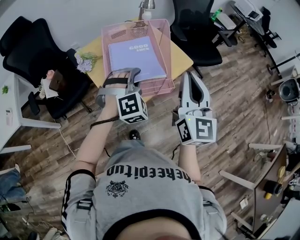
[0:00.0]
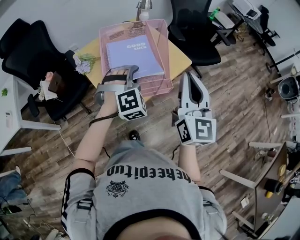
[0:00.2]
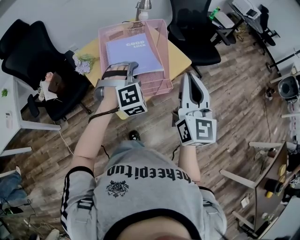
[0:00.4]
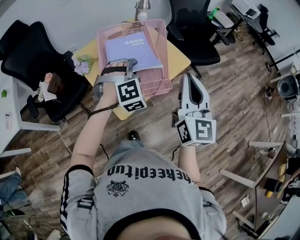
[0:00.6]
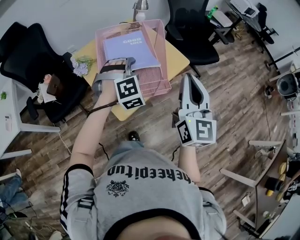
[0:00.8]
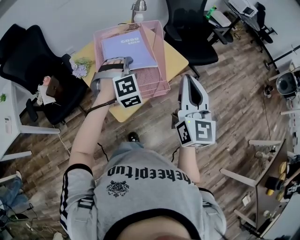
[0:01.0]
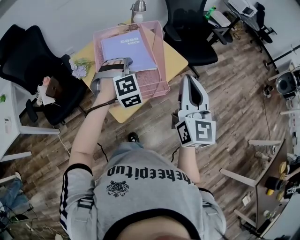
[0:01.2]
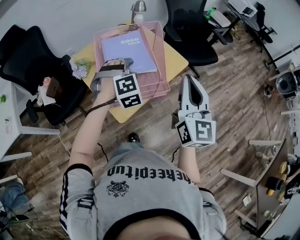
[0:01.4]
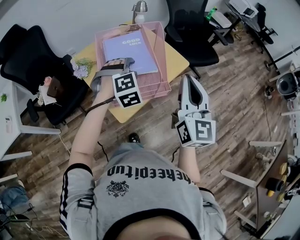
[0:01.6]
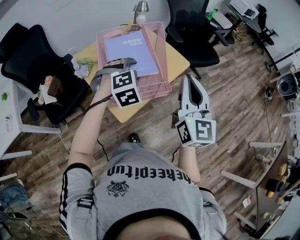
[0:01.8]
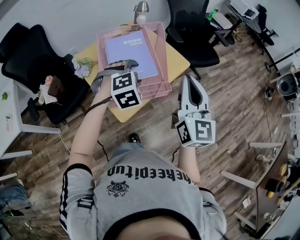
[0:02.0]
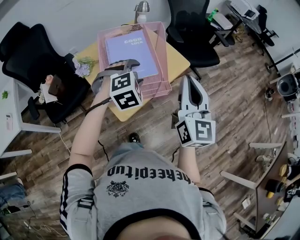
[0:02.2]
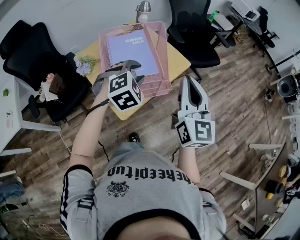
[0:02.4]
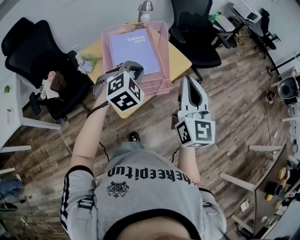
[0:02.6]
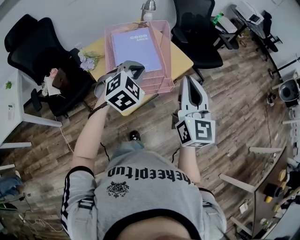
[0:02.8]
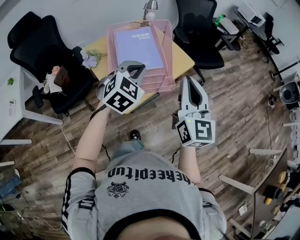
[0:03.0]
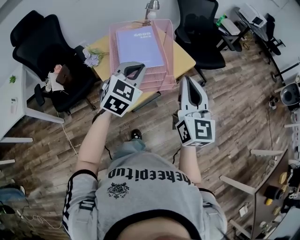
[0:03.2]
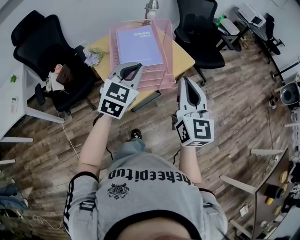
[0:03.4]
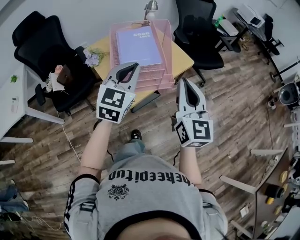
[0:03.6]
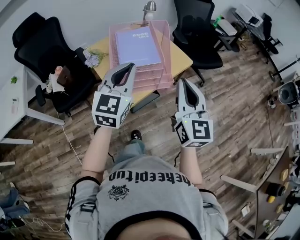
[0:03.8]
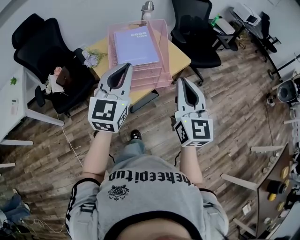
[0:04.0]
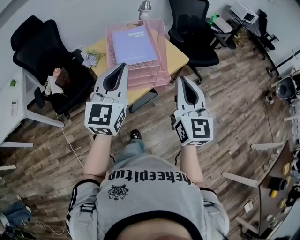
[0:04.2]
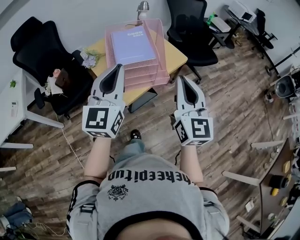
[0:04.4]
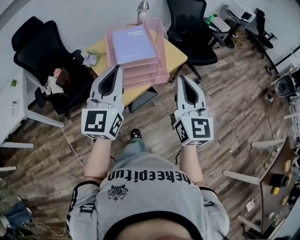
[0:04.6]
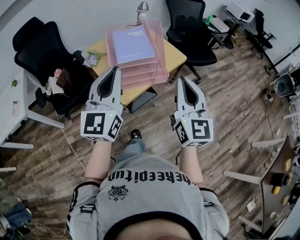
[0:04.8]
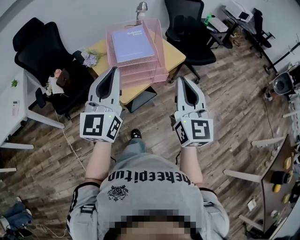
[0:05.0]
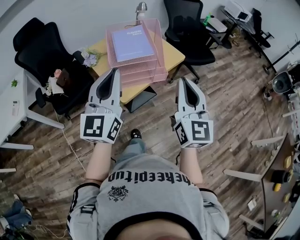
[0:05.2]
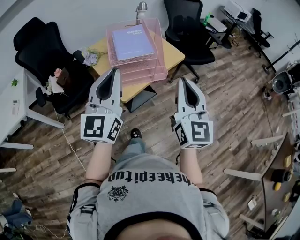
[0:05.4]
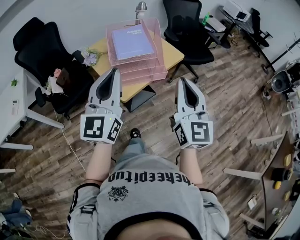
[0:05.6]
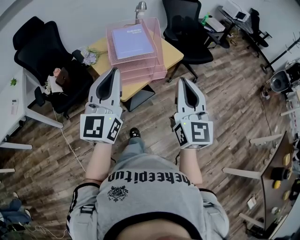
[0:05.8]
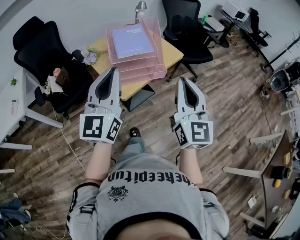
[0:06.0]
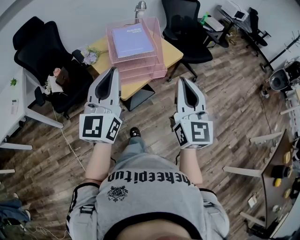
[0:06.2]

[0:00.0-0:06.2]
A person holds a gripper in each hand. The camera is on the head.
0:00.0 to 0:01.6: The left gripper opens up.
0:01.6 to 0:03.2: The left gripper travels backward and upward by roughly 10 cm, changes its angle by some 50 degrees, and closes up. Meanwhile the right gripper moves backward, approximately 5 cm.
0:03.2 to 0:04.6: The left gripper heads backward and upward, covering some 15 cm, and tips its fingers upward by about 30 degrees; the right gripper moves backward, about 10 cm.
0:04.6 to 0:06.2: Both grippers move backward, approximately 10 cm.

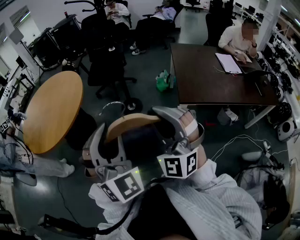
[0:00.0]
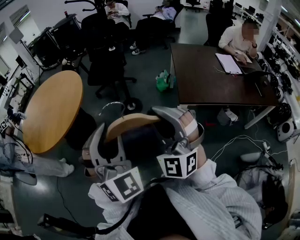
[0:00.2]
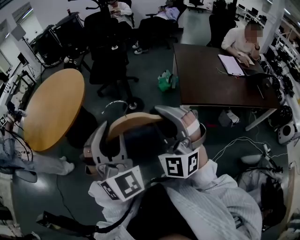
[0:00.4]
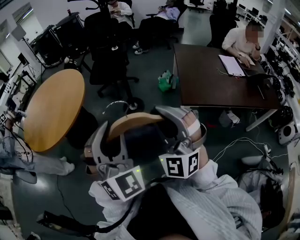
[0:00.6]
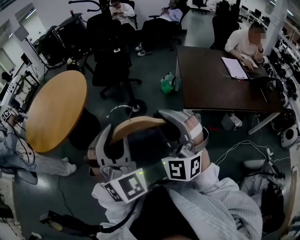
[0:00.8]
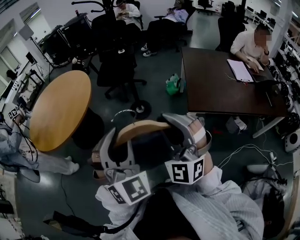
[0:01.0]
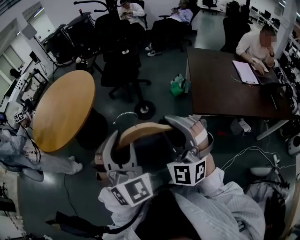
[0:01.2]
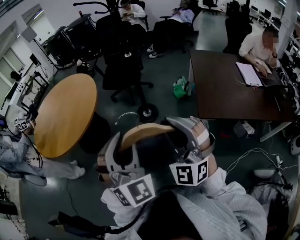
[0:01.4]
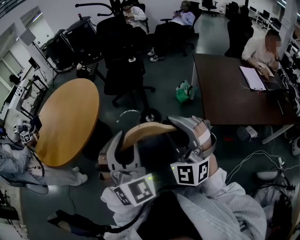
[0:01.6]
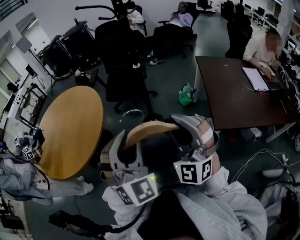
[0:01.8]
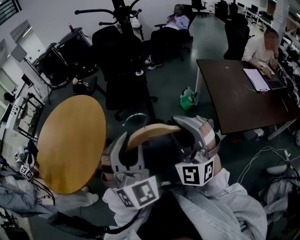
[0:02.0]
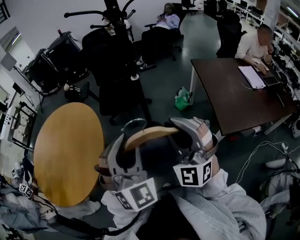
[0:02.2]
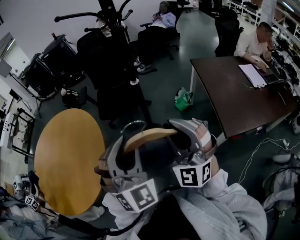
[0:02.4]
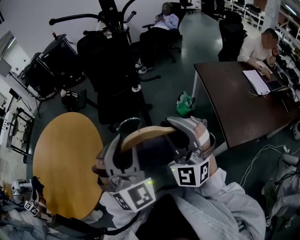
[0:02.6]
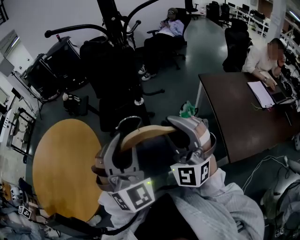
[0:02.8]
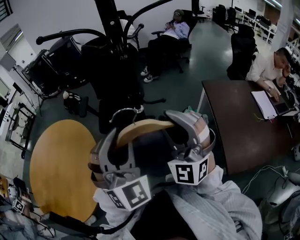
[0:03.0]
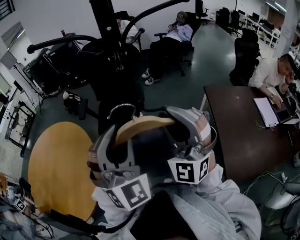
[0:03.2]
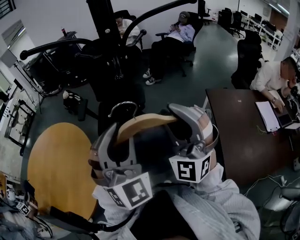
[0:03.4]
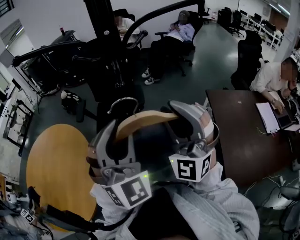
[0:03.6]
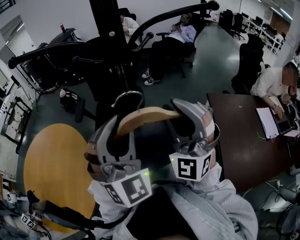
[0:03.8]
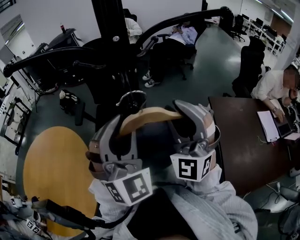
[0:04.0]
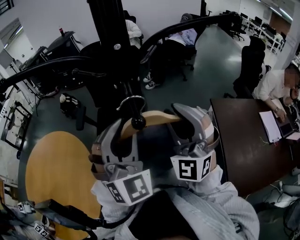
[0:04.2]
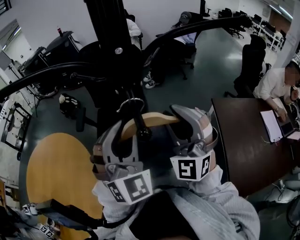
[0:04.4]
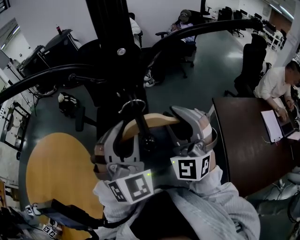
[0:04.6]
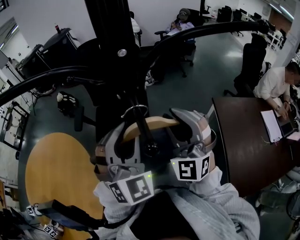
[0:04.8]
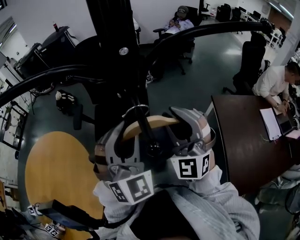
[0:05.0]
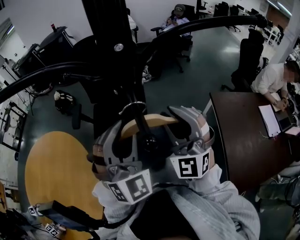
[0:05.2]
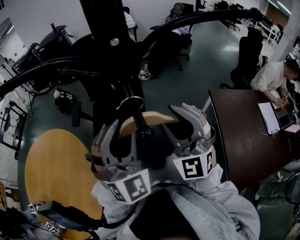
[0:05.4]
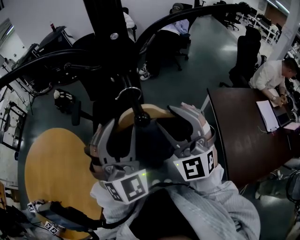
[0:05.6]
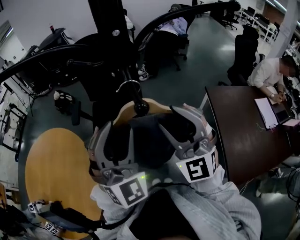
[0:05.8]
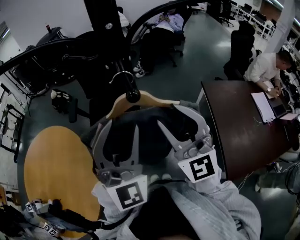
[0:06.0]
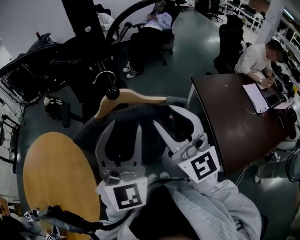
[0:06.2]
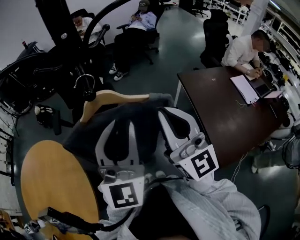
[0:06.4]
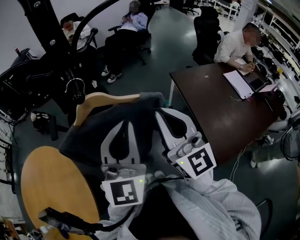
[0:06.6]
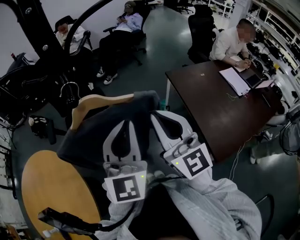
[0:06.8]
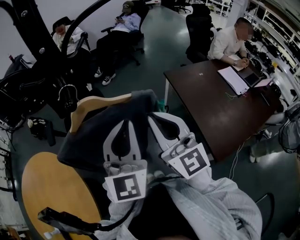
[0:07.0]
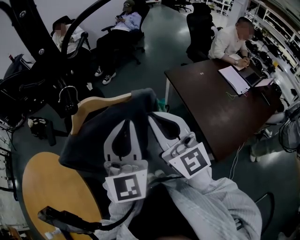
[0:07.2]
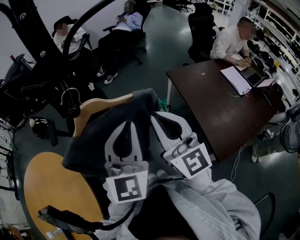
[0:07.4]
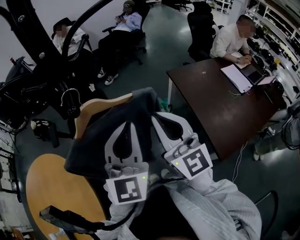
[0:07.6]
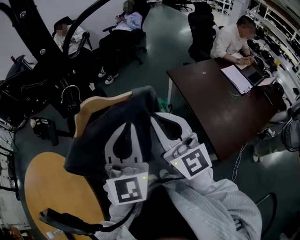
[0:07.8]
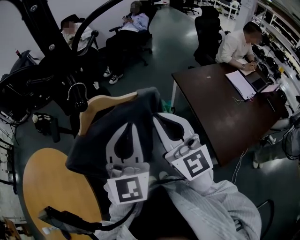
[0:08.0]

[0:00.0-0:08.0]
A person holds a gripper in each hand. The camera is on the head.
0:00.0 to 0:01.6: The grippers both shift forward by approximately 15 cm.
0:01.6 to 0:03.2: Both grippers are carried forward, approximately 50 cm.
0:03.2 to 0:04.8: Both grippers travel together forward, roughly 20 cm.
0:04.8 to 0:06.4: The left gripper goes roughly 15 cm backward and to the right, and swivels about 40 degrees. Meanwhile the right gripper moves backward, about 15 cm, rotates around the line of its fingers by roughly 50 degrees, clockwise from behind, and closes.
0:06.4 to 0:08.0: The left gripper moves some 5 cm, and closes.

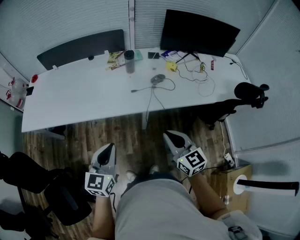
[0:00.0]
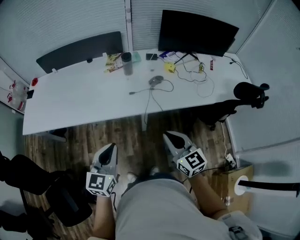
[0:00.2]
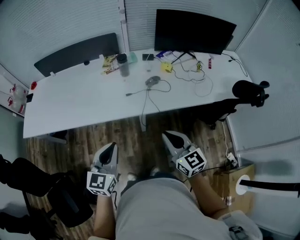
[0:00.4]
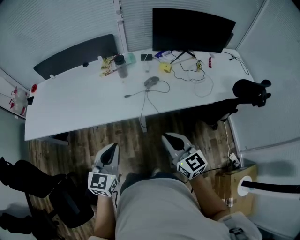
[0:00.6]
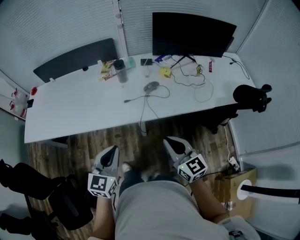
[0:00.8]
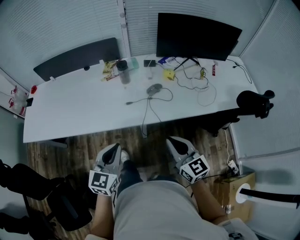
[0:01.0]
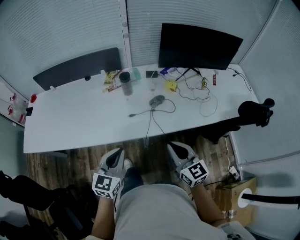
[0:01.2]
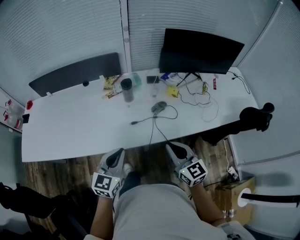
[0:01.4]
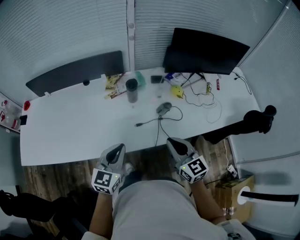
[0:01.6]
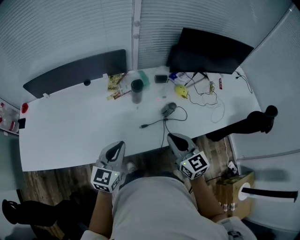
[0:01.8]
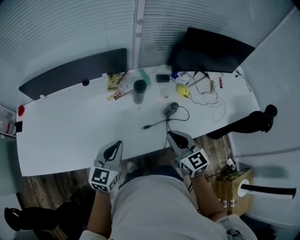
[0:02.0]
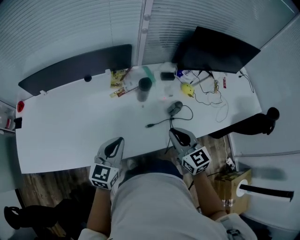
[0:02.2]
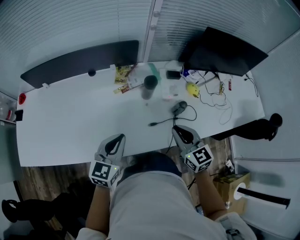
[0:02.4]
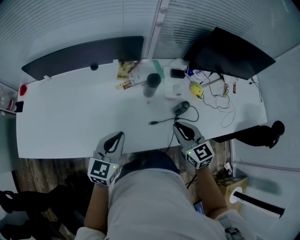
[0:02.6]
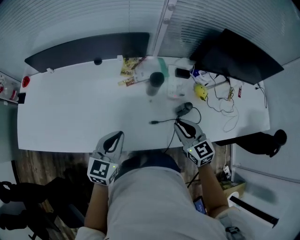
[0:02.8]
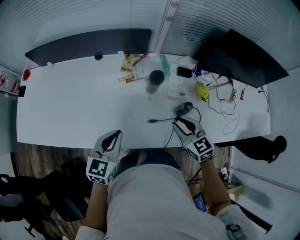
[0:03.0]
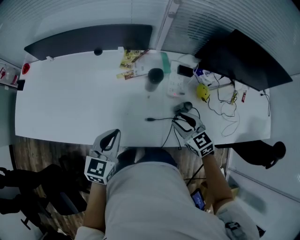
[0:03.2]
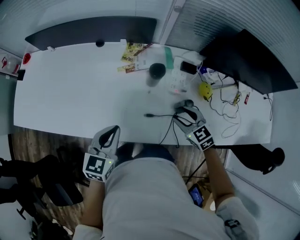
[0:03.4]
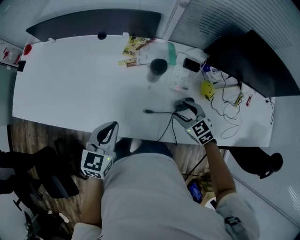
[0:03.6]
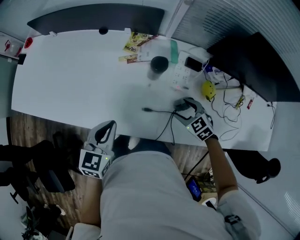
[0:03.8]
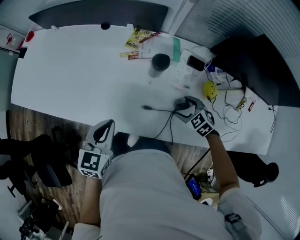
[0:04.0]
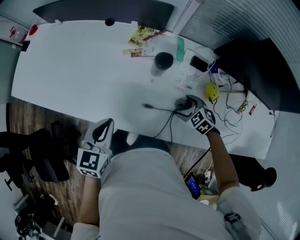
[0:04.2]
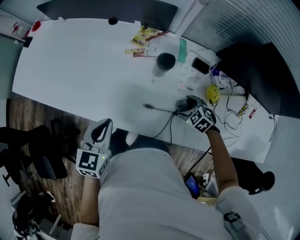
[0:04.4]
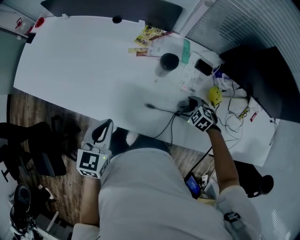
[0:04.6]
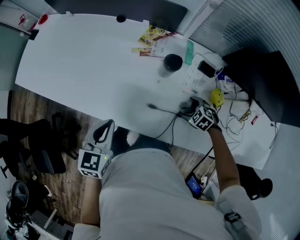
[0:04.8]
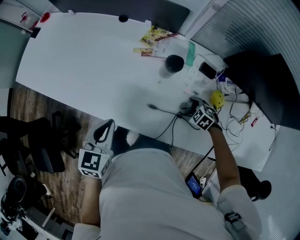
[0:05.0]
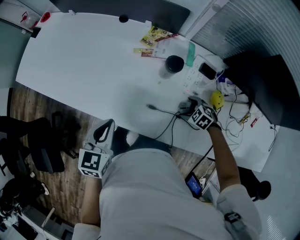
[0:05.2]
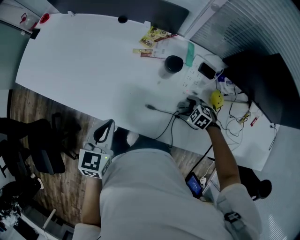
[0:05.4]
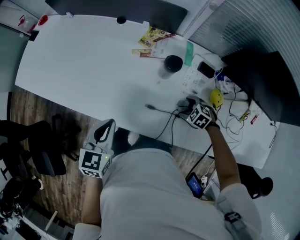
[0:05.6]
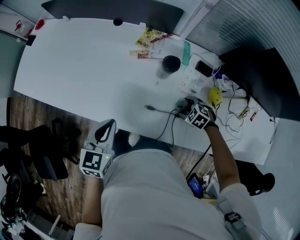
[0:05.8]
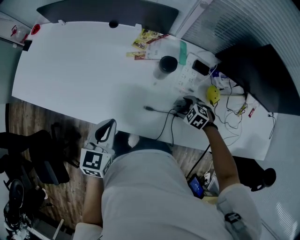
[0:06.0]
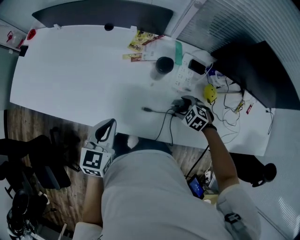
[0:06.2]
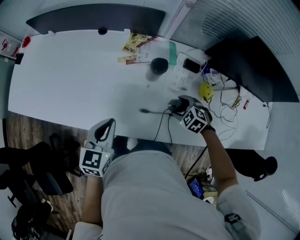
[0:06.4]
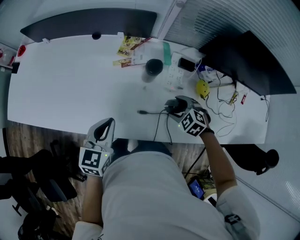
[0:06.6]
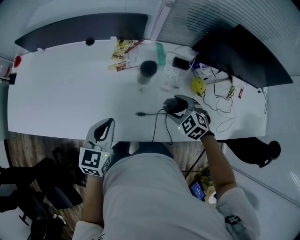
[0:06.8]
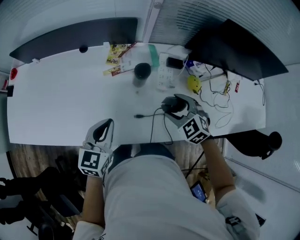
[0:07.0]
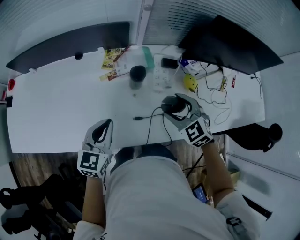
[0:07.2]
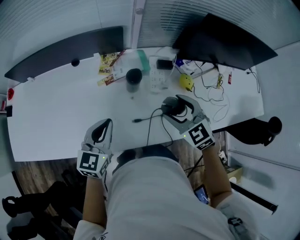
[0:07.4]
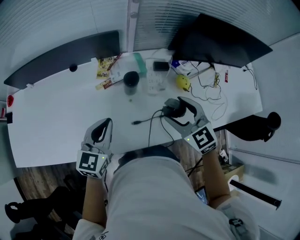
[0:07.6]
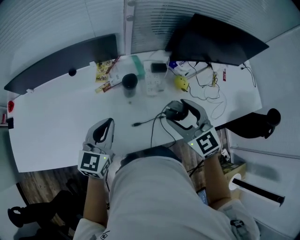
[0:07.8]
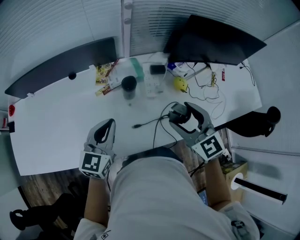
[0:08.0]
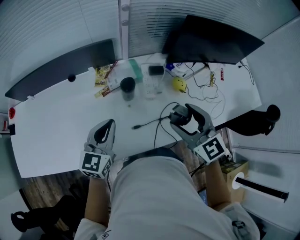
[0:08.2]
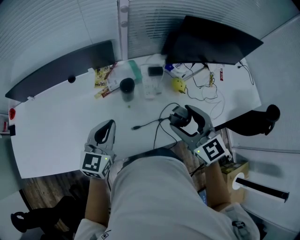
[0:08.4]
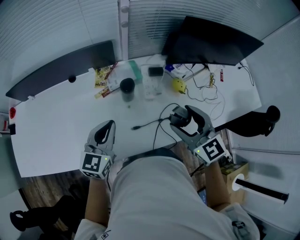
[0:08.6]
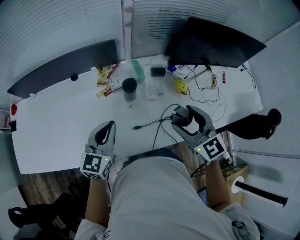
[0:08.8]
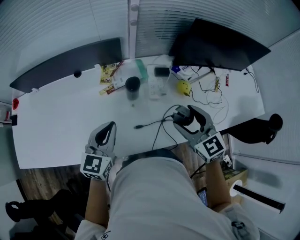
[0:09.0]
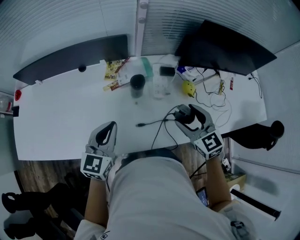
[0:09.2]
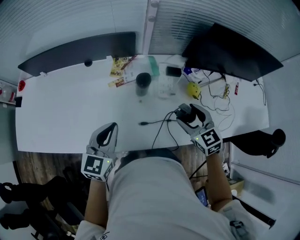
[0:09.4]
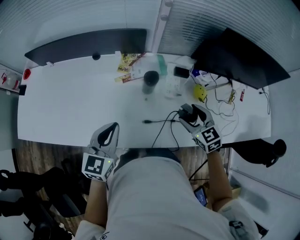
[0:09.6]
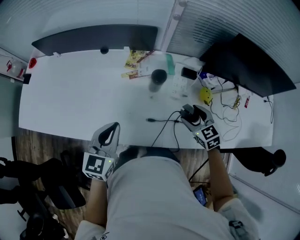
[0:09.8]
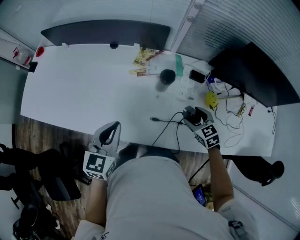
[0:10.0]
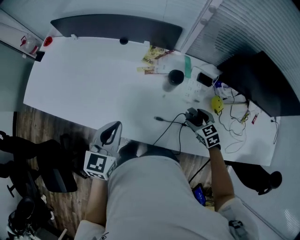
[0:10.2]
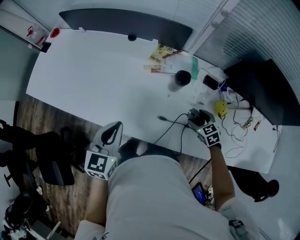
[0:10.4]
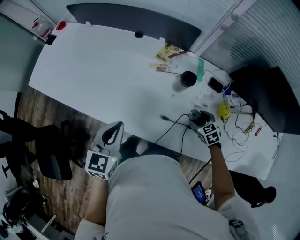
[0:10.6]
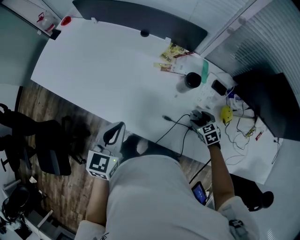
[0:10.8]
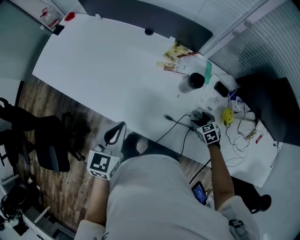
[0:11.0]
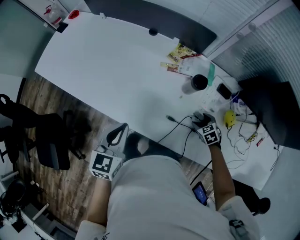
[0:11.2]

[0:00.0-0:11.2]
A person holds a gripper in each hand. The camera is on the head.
0:00.0 to 0:01.6: The two grippers go some 25 cm forward.
0:01.6 to 0:03.2: The left gripper is displaced forward, to the left and downward by approximately 15 cm. Meanwhile the right gripper moves forward and downward, some 20 cm, rotates some 30 degrees, and opens up.
0:03.2 to 0:04.8: The left gripper rotates roughly 20 degrees; the right gripper shifts roughly 20 cm downward, points its fingers approximately 30 degrees further downward, and opens.
0:04.8 to 0:06.4: The right gripper shifts about 5 cm upward.
0:06.4 to 0:08.0: The right gripper travels upward by about 25 cm, and tips its fingers upward by roughly 50 degrees; the left gripper shifts by approximately 10 cm, and changes its angle by roughly 30 degrees.
0:08.0 to 0:09.6: The right gripper is displaced downward by about 10 cm, while the left gripper travels backward by approximately 5 cm.
0:09.6 to 0:11.2: The right gripper goes about 20 cm downward, and swivels about 30 degrees. Meanwhile the left gripper travels to the left and backward by roughly 10 cm, and changes its angle by some 30 degrees.
